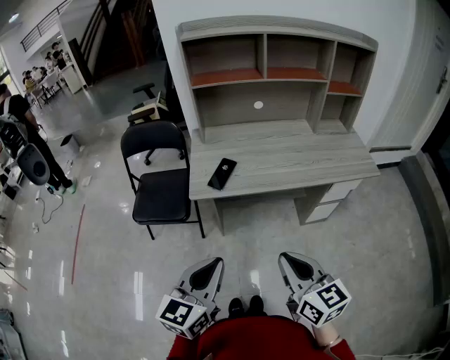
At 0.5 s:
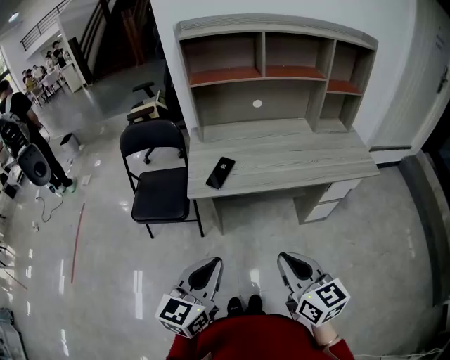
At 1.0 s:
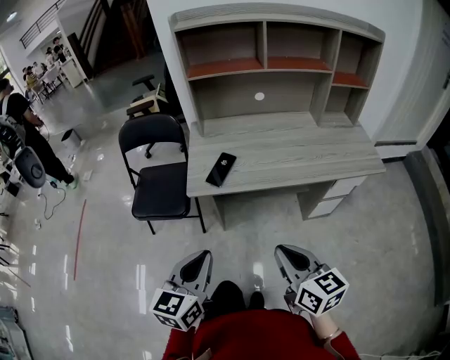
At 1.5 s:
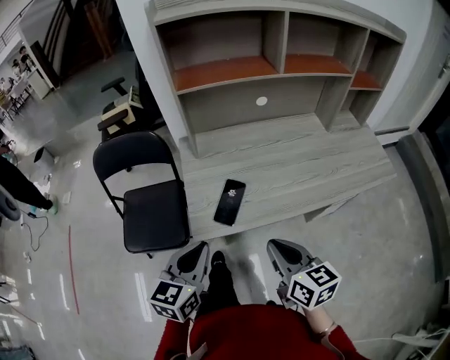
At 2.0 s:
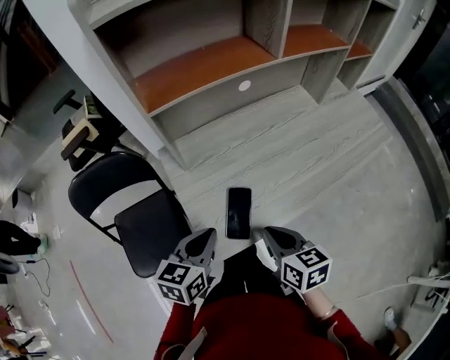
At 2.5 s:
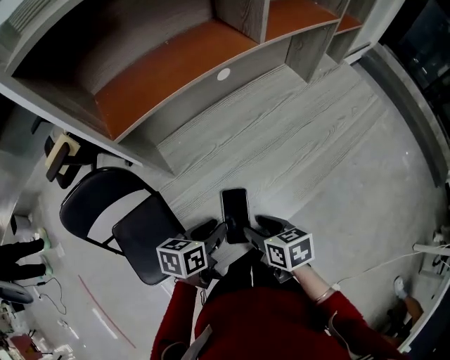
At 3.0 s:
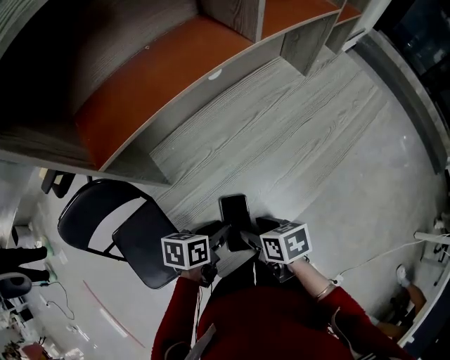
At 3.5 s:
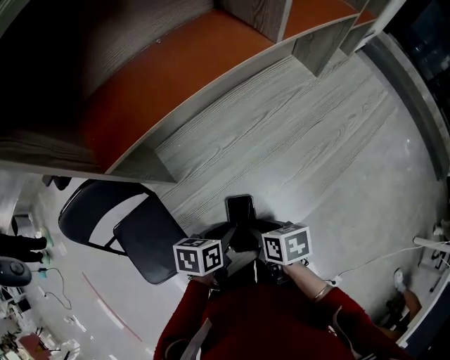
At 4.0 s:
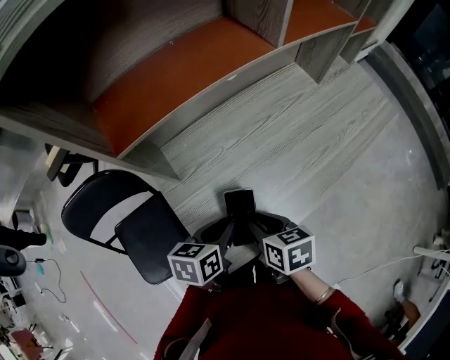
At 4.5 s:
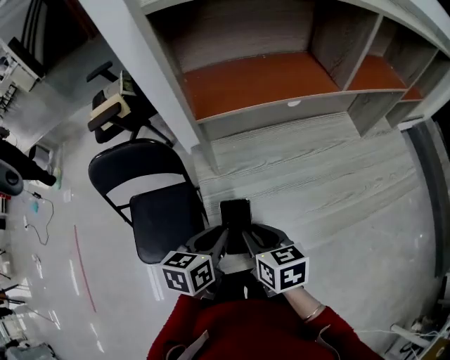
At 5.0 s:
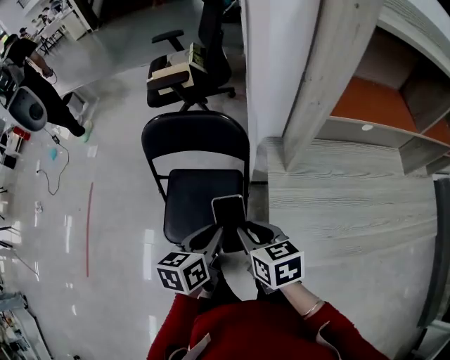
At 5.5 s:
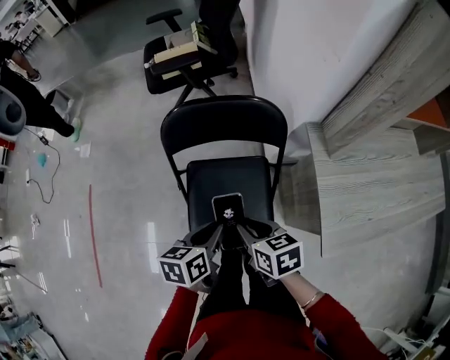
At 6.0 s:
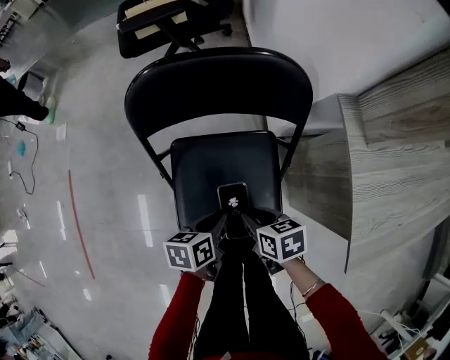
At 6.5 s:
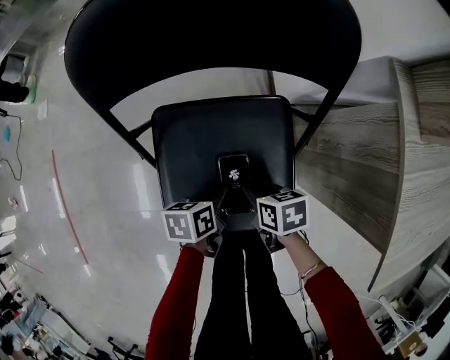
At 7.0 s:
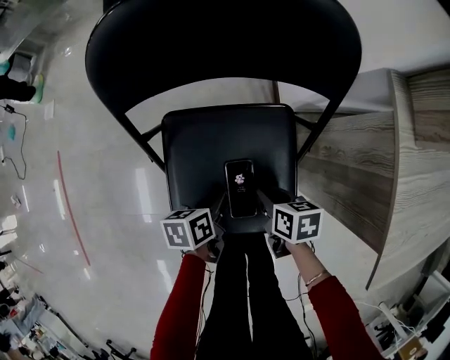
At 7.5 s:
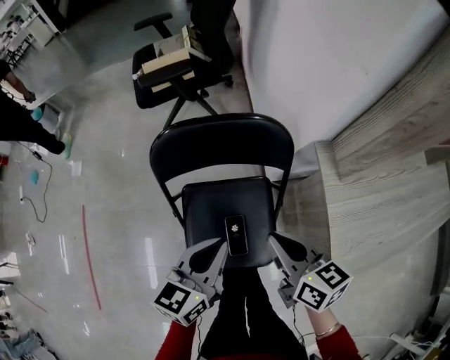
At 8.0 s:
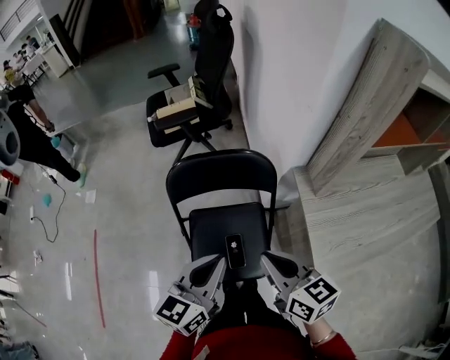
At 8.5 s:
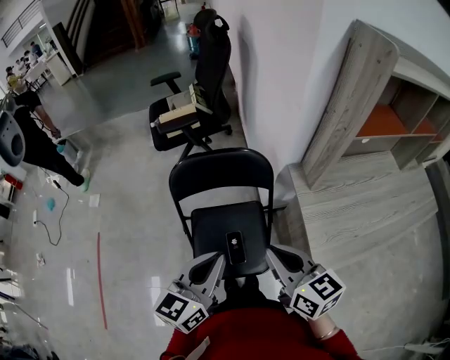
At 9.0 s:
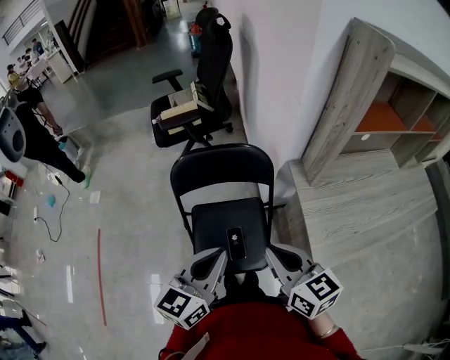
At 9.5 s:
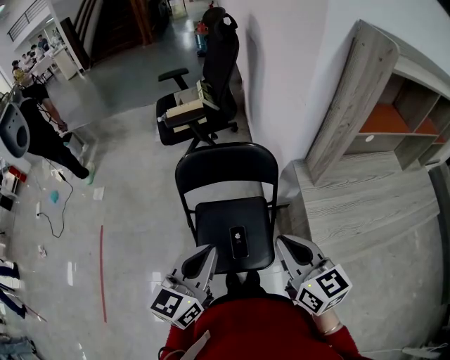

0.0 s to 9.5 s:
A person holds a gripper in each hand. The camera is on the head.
0.0 to 2.0 s: The left gripper heads forward, covering some 35 cm, and swivels roughly 30 degrees, while the right gripper shifts some 35 cm forward, to the left and downward, and changes its angle by approximately 30 degrees.
2.0 to 4.0 s: The left gripper goes some 10 cm downward and forward, and swivels about 20 degrees; the right gripper shifts roughly 5 cm forward, and opens.
4.0 to 5.5 s: The left gripper changes place by approximately 40 cm, and changes its angle by approximately 30 degrees. Meanwhile the right gripper moves some 40 cm, and swivels roughly 30 degrees.
5.5 to 7.5 s: The left gripper heads forward, covering about 5 cm, travels downward and back again, about 30 cm each way, and turns by some 30 degrees; the right gripper moves forward and to the right, approximately 10 cm, goes downward and returns, some 30 cm each way, and changes its angle by about 20 degrees.
7.5 to 9.5 s: The grippers both shift upward and backward by approximately 15 cm. The right gripper rotates some 20 degrees.

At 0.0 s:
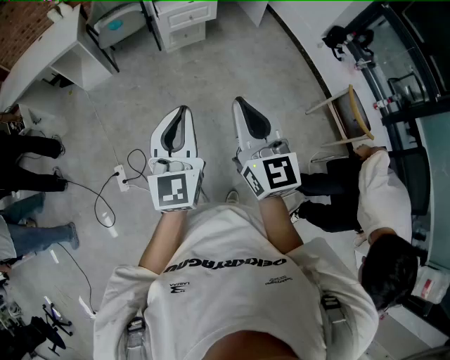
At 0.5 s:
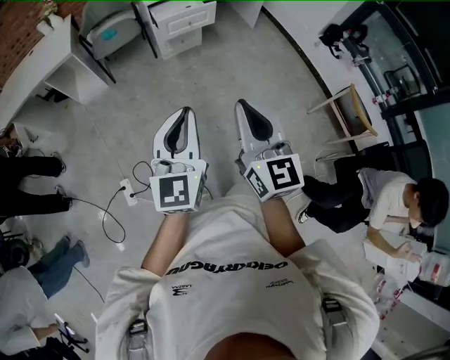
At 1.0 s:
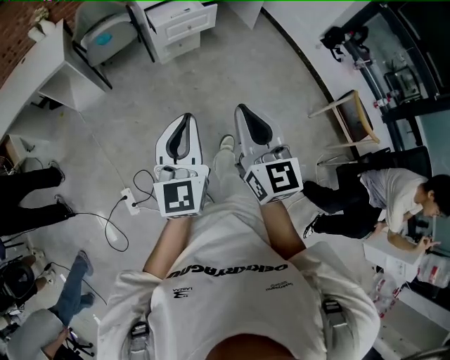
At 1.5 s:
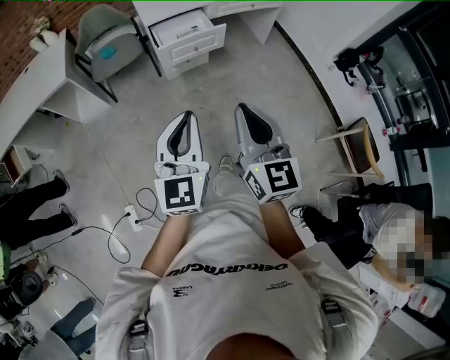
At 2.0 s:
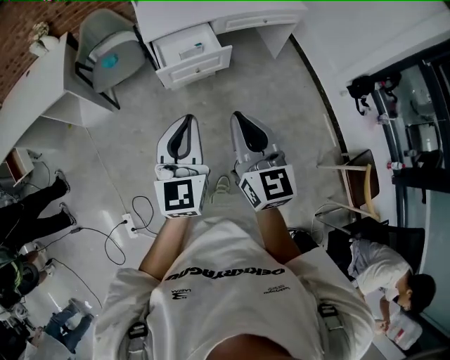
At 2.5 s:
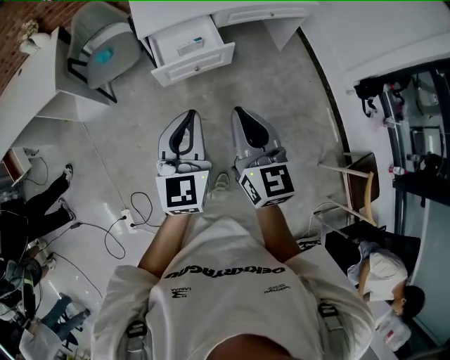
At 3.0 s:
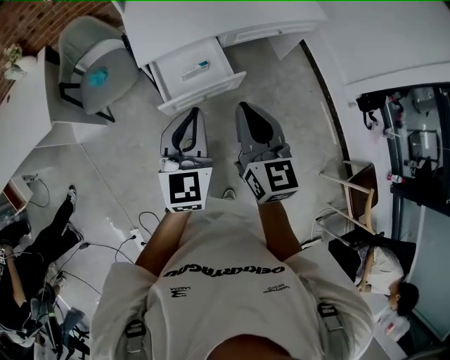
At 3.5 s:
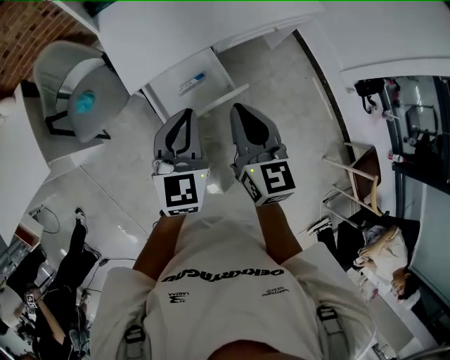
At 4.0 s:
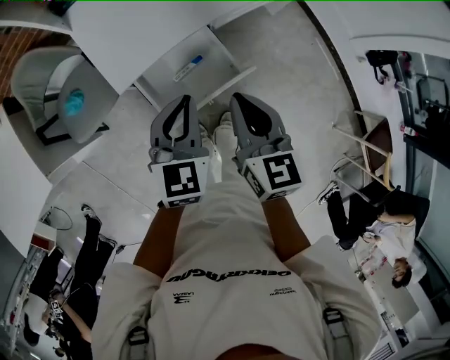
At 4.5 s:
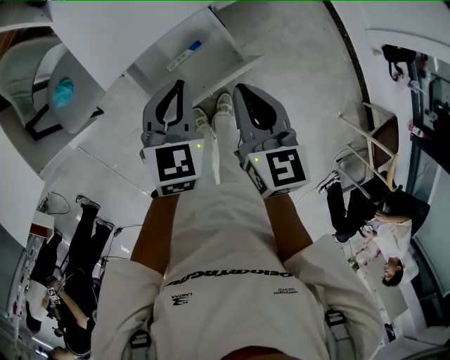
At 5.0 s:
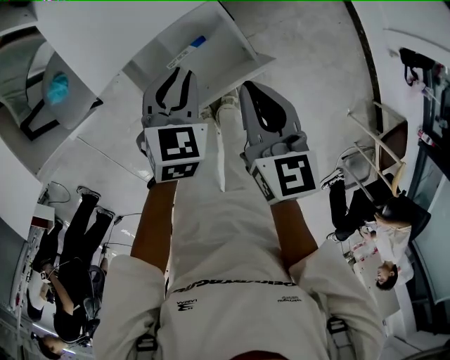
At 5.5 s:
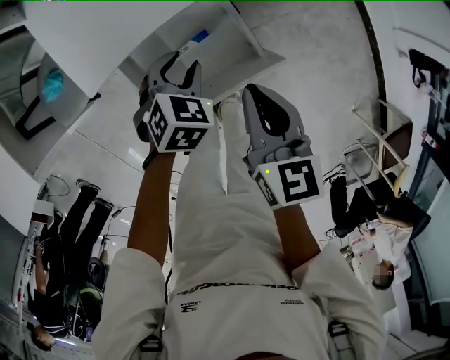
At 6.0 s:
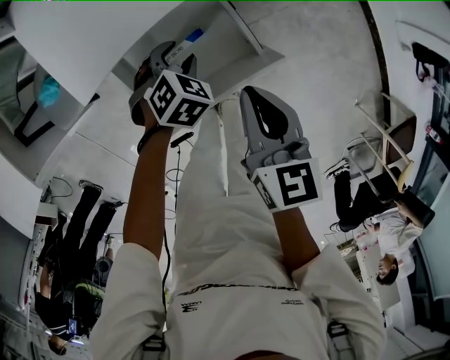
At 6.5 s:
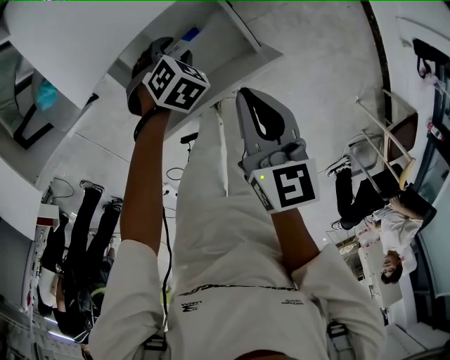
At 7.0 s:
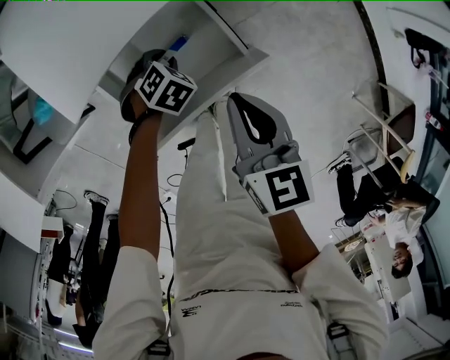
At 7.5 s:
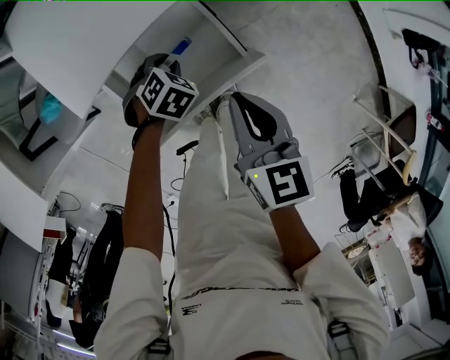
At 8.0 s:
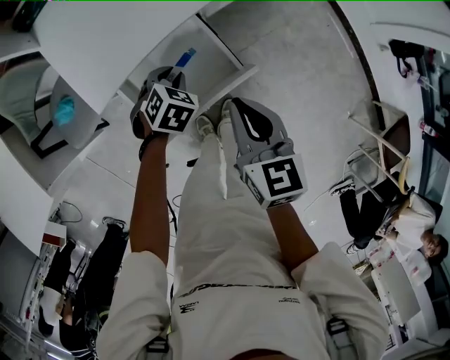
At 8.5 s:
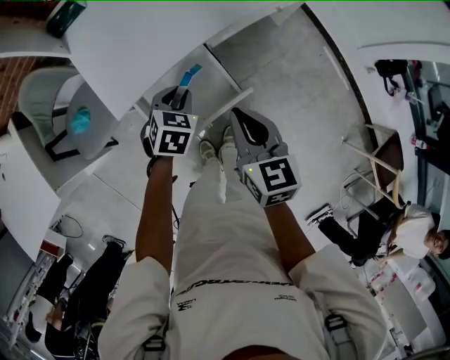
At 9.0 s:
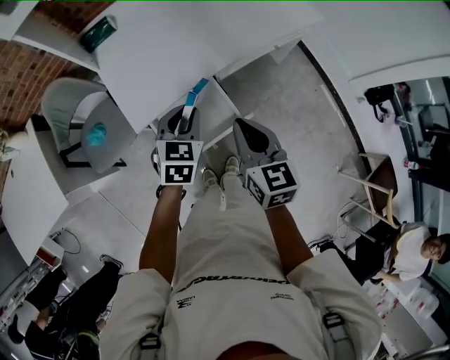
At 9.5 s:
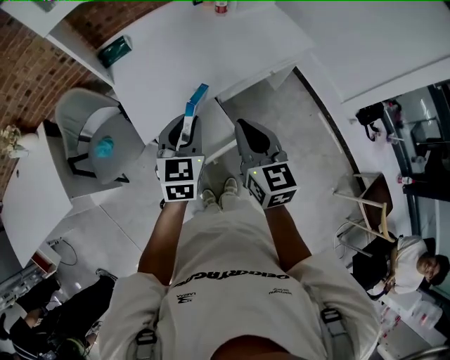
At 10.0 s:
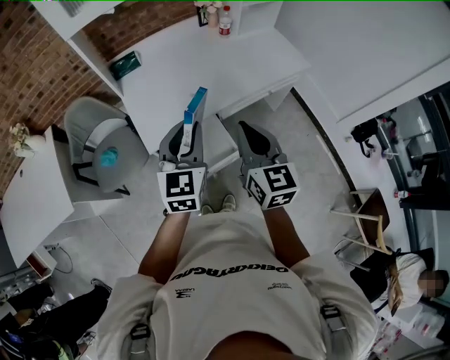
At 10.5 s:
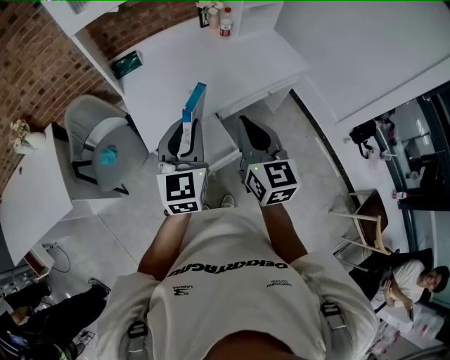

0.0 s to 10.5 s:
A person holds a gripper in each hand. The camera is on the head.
0.0 to 2.0 s: Both grippers are carried forward, approximately 60 cm.
2.0 to 4.0 s: The two grippers travel together, forward, about 50 cm. The left gripper swivels approximately 30 degrees, while the right gripper swivels some 30 degrees.
4.0 to 6.5 s: The right gripper travels downward by roughly 20 cm. The left gripper heads downward, covering approximately 40 cm, points its fingers some 50 degrees further downward, and opens.
6.5 to 8.5 s: The left gripper goes some 25 cm upward, rotates roughly 30 degrees, and closes, while the right gripper travels upward by roughly 15 cm.
8.5 to 10.5 s: Both grippers move upward, roughly 30 cm. The right gripper rotates roughly 20 degrees. Meanwhile the left gripper tips its fingers upward by approximately 50 degrees.

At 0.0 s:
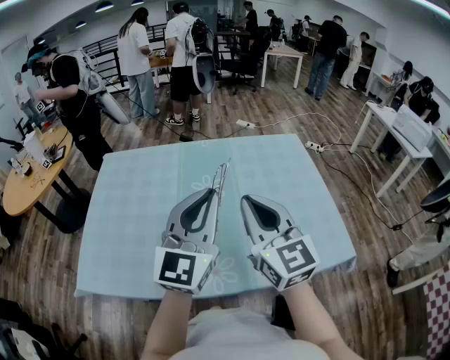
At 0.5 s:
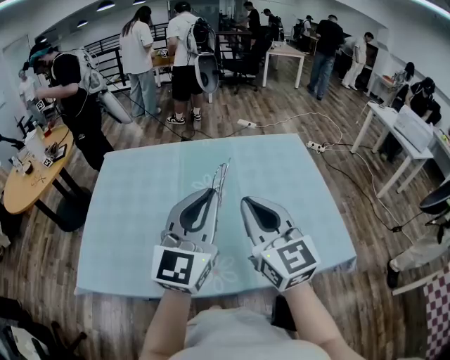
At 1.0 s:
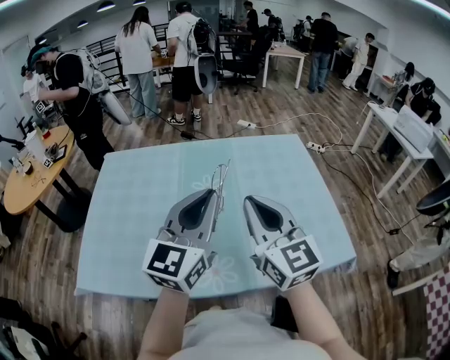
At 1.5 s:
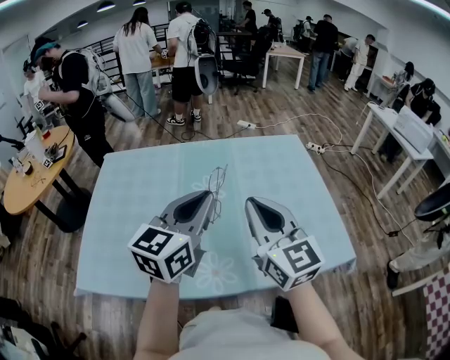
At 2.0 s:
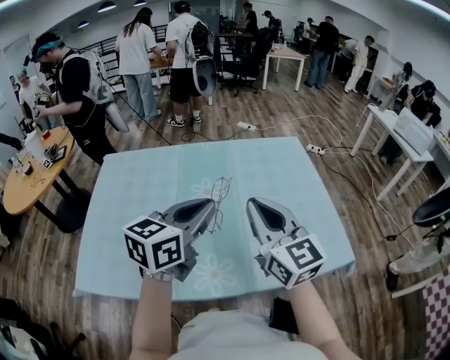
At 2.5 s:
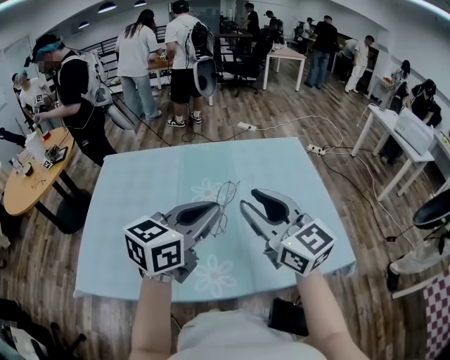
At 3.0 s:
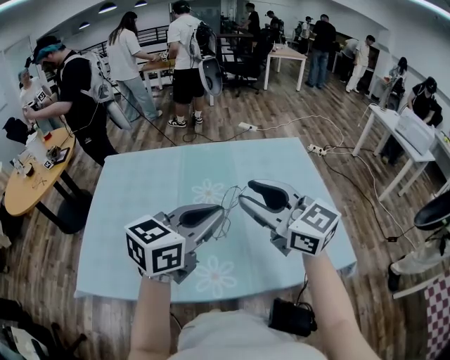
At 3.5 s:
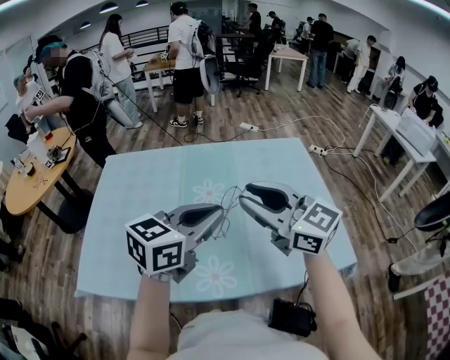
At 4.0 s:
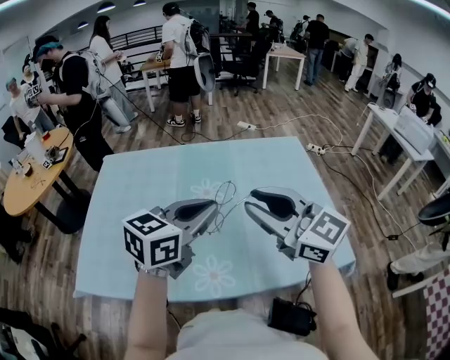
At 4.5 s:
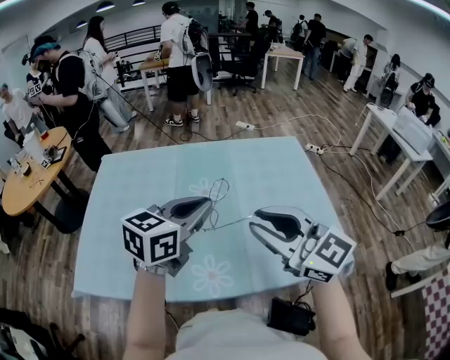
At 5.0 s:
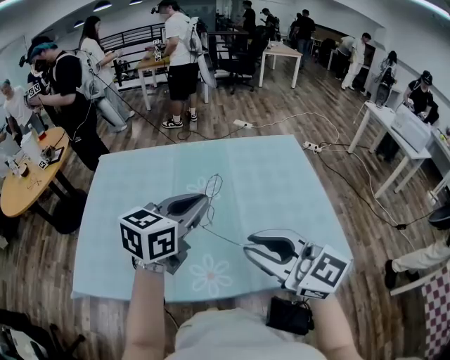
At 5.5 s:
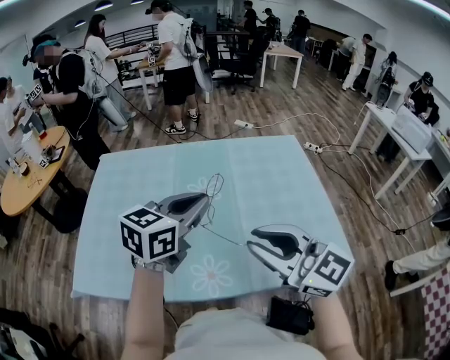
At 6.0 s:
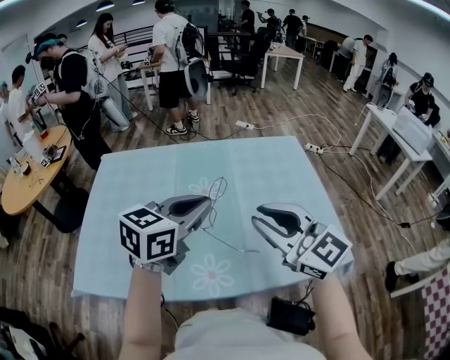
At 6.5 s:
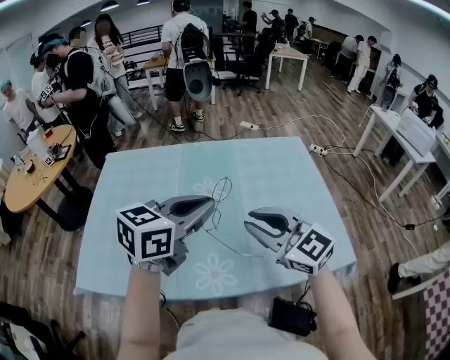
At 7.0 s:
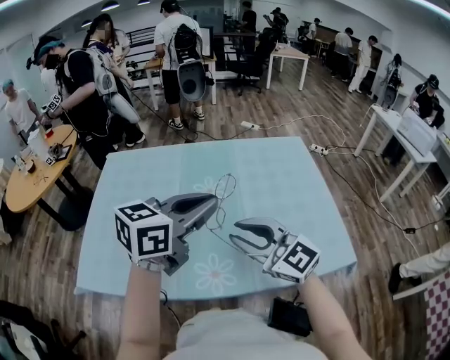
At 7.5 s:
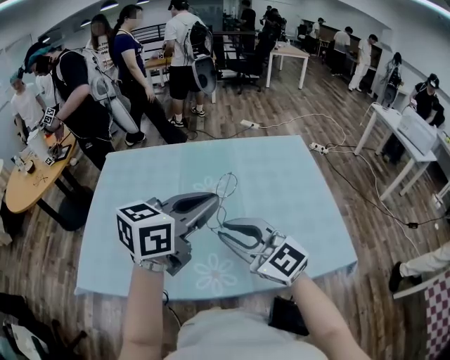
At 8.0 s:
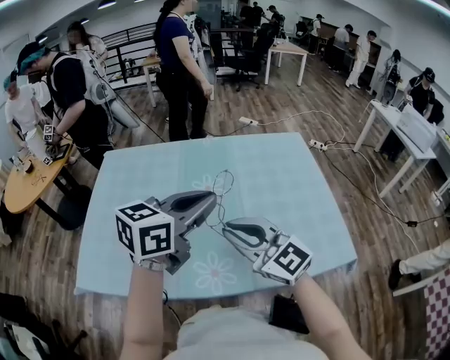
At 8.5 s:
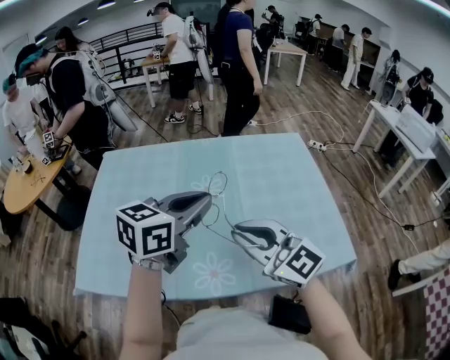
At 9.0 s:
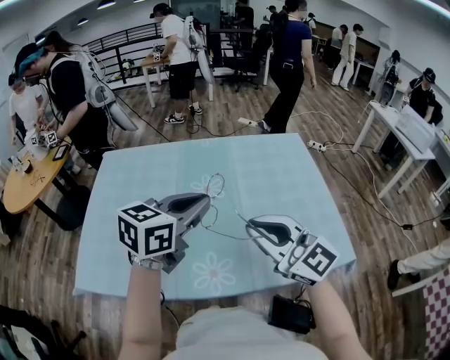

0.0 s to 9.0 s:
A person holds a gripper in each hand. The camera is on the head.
0.0 to 2.0 s: The left gripper ends up about 5 cm from where it was, and turns by about 40 degrees.
2.0 to 4.5 s: The right gripper ends up about 5 cm from where it was, changes its angle by some 30 degrees, and opens.
4.5 to 7.0 s: The right gripper is displaced downward by roughly 5 cm.
7.0 to 9.0 s: There are only small adjustments of the grippers.
